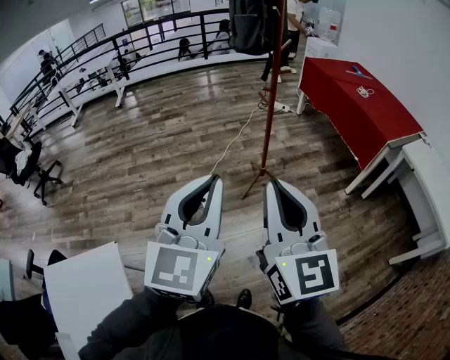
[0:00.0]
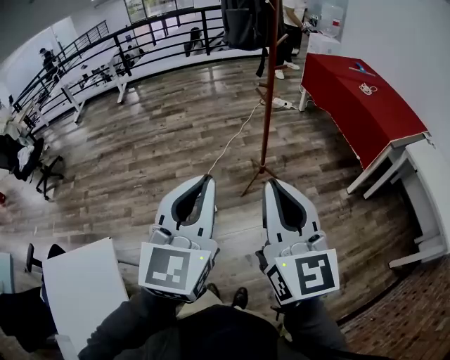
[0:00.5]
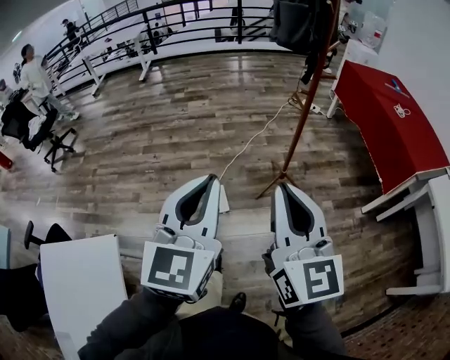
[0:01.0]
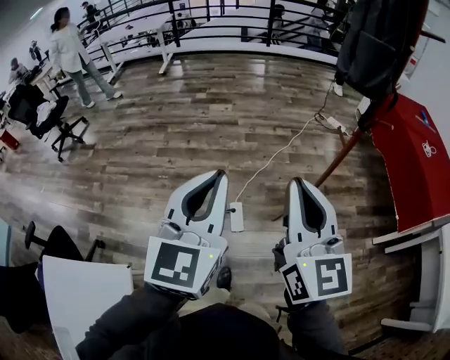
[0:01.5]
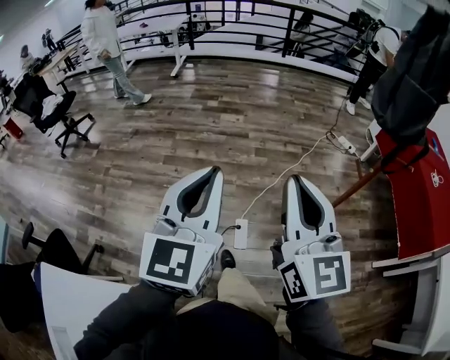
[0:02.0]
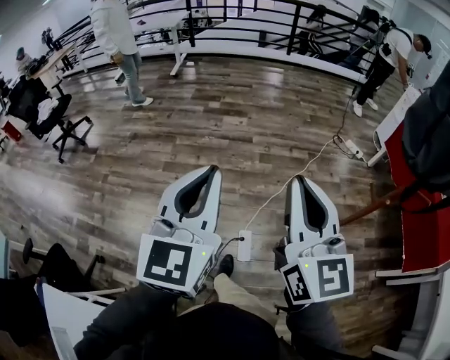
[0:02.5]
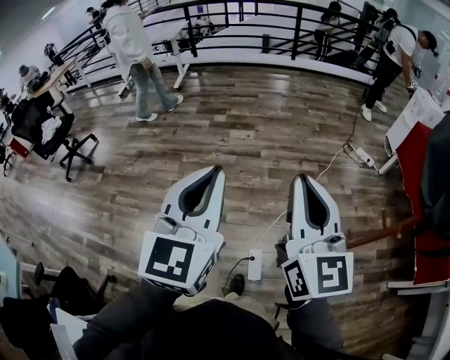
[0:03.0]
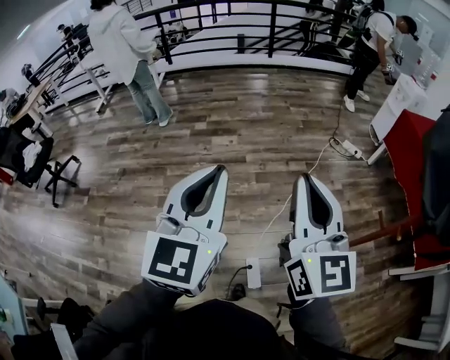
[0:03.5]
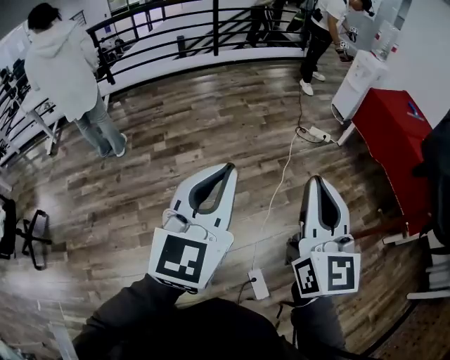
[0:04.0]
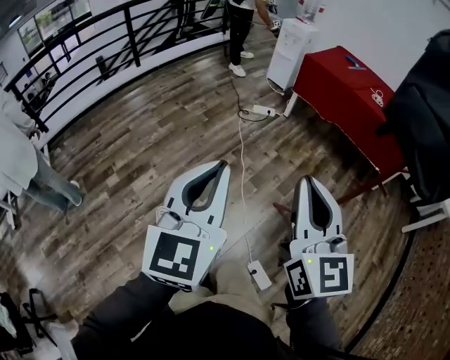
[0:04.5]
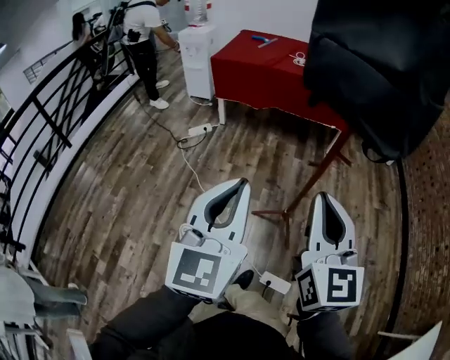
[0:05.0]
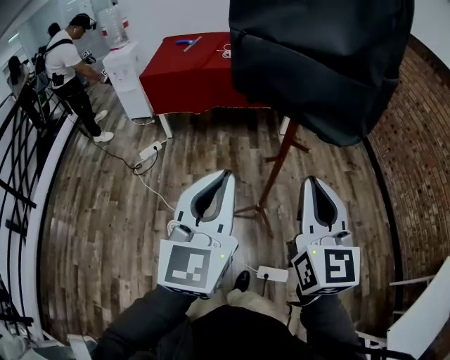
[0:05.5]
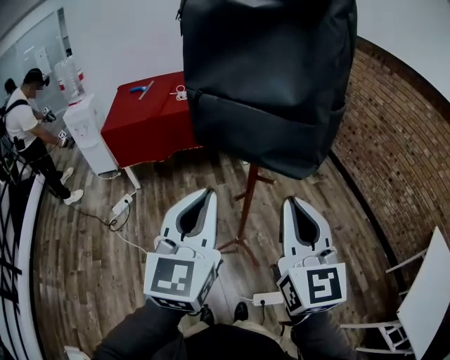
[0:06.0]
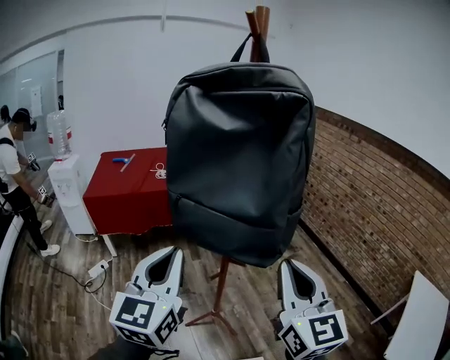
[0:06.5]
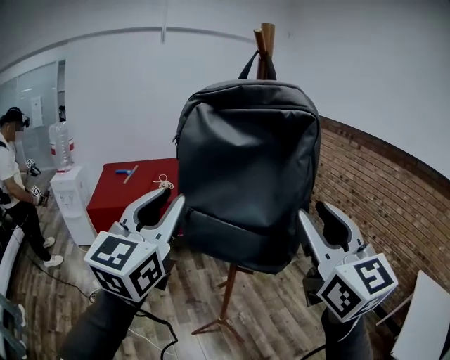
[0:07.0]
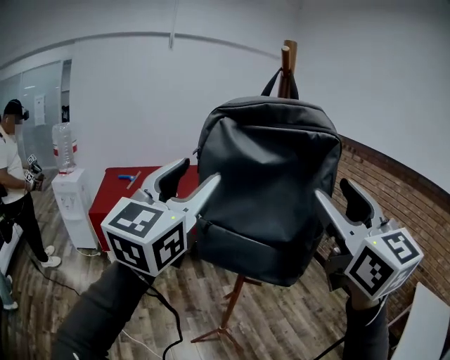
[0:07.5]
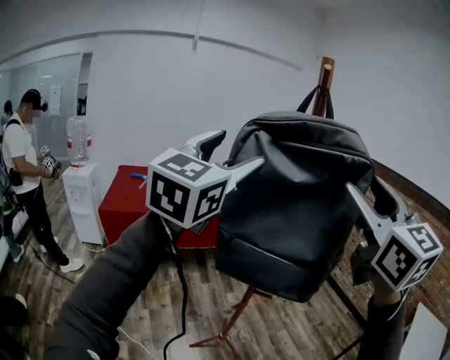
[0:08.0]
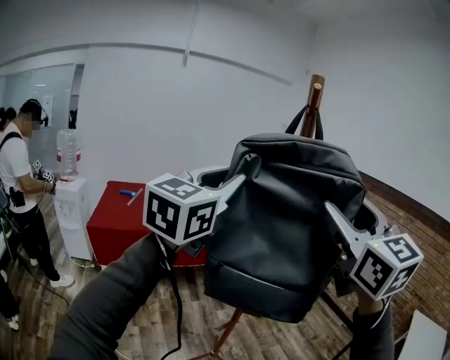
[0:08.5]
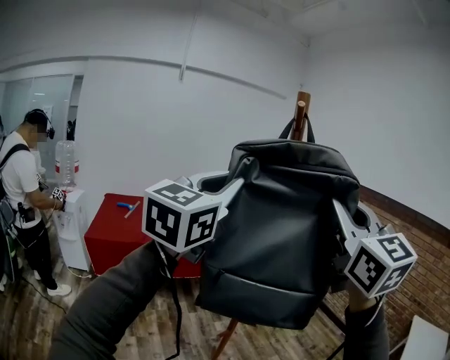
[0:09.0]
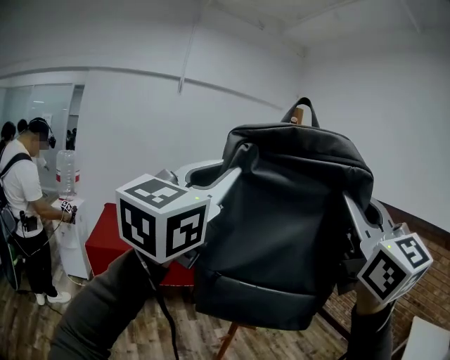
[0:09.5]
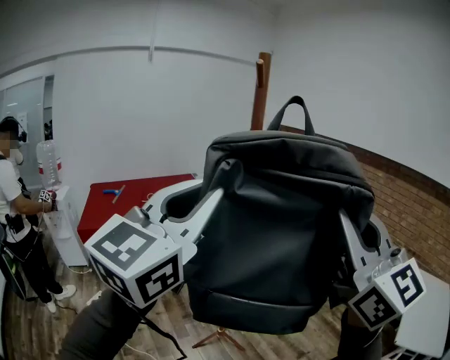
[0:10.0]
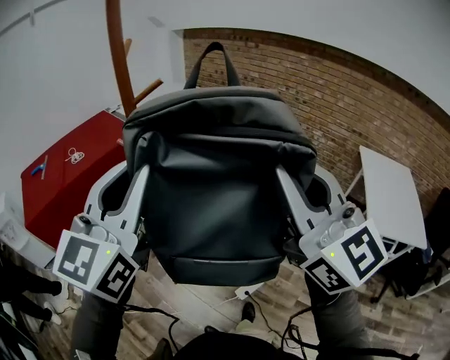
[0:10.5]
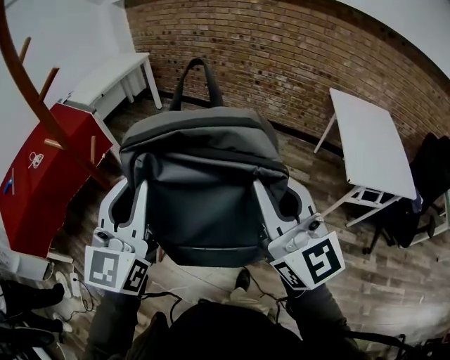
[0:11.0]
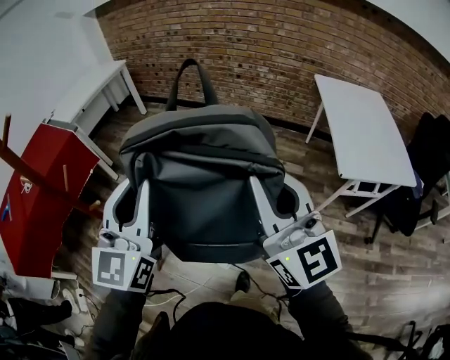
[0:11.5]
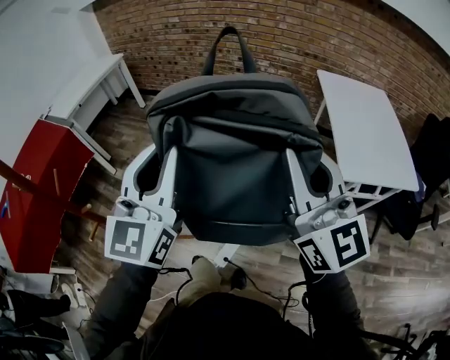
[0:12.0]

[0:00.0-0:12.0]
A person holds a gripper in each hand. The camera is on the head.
0:00.0 to 0:02.0: The pair of grippers is taken forward and to the left, approximately 40 cm. The left gripper changes its angle by roughly 20 degrees.
0:02.0 to 0:04.0: The two grippers travel together, about 50 cm. The left gripper rotates some 30 degrees. The right gripper rotates some 30 degrees.
0:04.0 to 0:06.0: The right gripper ends up approximately 25 cm from where it was, and changes its angle by about 80 degrees. Meanwhile the left gripper ends up approximately 40 cm from where it was, and changes its angle by about 80 degrees.
0:06.0 to 0:08.0: The left gripper heads upward and forward, covering roughly 35 cm, rotates approximately 30 degrees, and opens its fingers, while the right gripper moves upward, some 30 cm, and opens.
0:08.0 to 0:10.0: The left gripper moves backward and to the right, some 15 cm, and closes its fingers, while the right gripper is displaced backward by roughly 10 cm, and closes its fingers.
0:10.0 to 0:12.0: The pair of grippers is taken about 40 cm. The left gripper turns by approximately 30 degrees. Meanwhile the right gripper changes its angle by about 40 degrees.

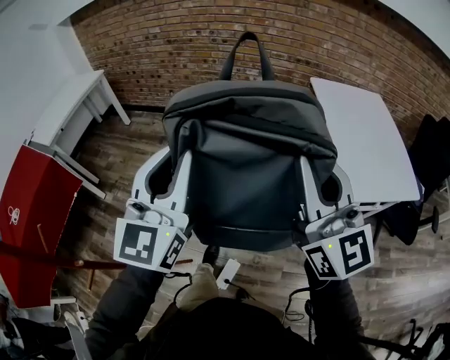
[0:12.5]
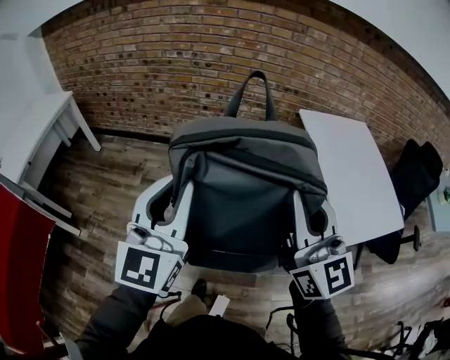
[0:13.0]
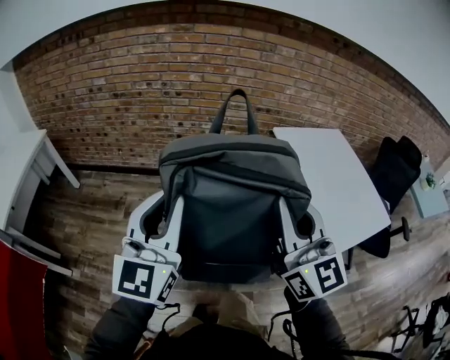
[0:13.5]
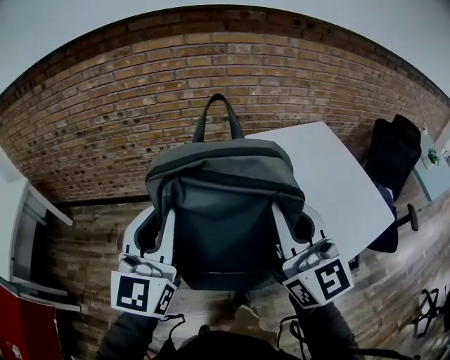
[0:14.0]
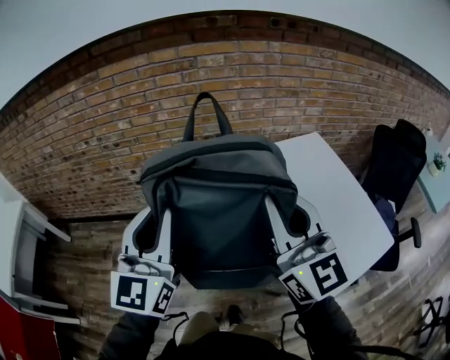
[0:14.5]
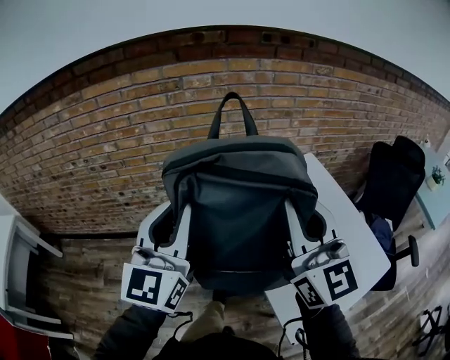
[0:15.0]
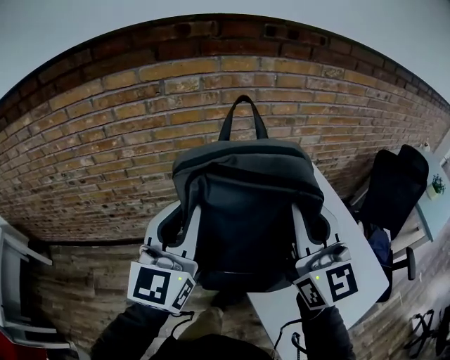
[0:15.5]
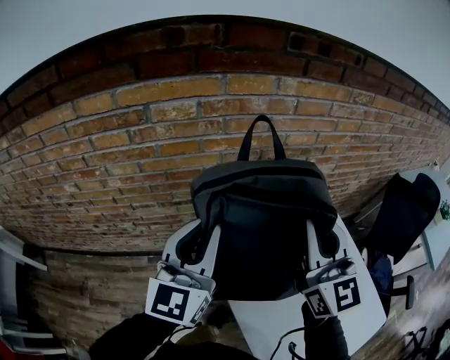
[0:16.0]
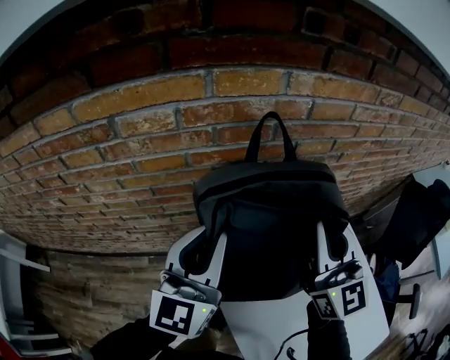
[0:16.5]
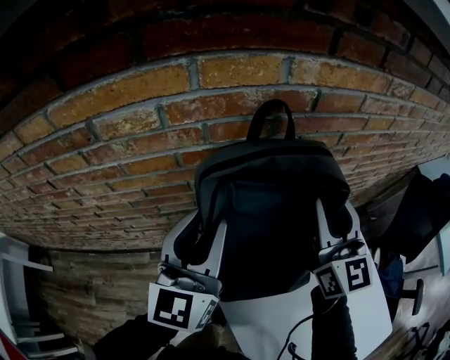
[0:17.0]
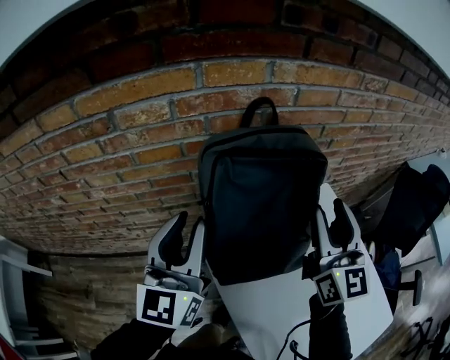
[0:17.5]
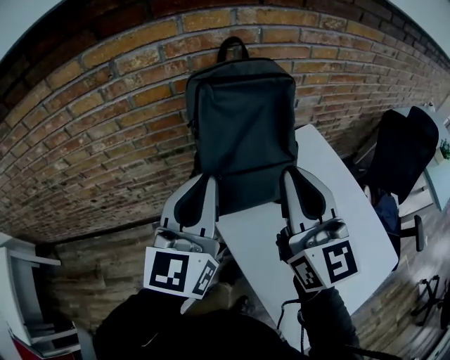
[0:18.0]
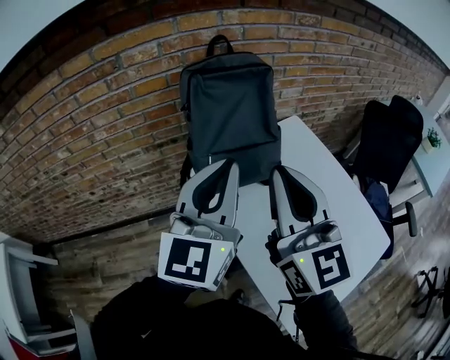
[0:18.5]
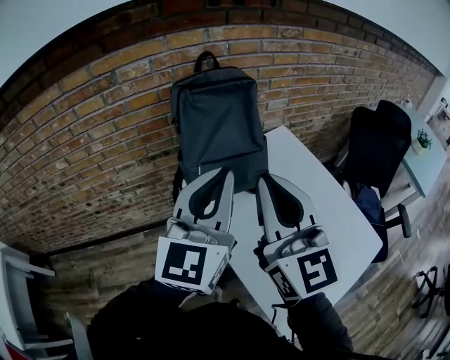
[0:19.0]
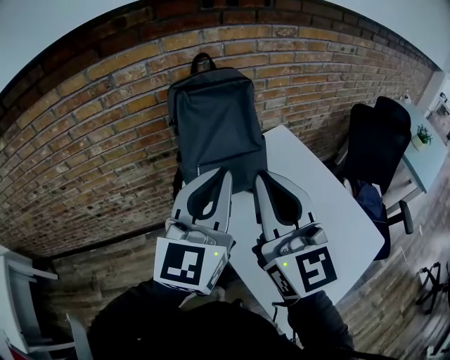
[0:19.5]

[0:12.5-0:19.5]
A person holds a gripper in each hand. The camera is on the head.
0:12.5 to 0:14.5: The pair of grippers is taken forward and to the right, some 50 cm.
0:14.5 to 0:16.0: The grippers both shift forward by approximately 40 cm.
0:16.0 to 0:17.5: The left gripper is displaced forward by about 5 cm; the right gripper heads forward, to the right and downward, covering approximately 10 cm, and opens its fingers.
0:17.5 to 0:19.5: The right gripper heads backward, covering some 25 cm, and closes up, while the left gripper is displaced backward and to the right by about 25 cm.

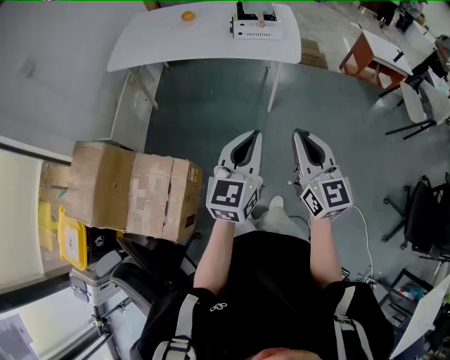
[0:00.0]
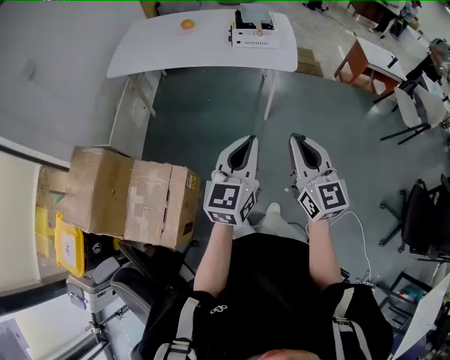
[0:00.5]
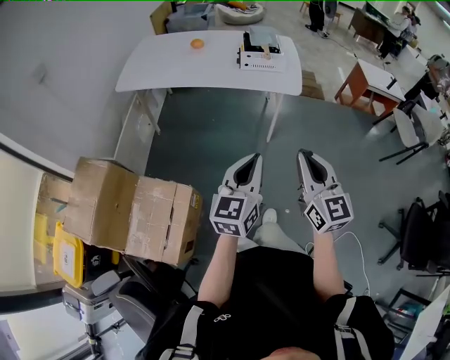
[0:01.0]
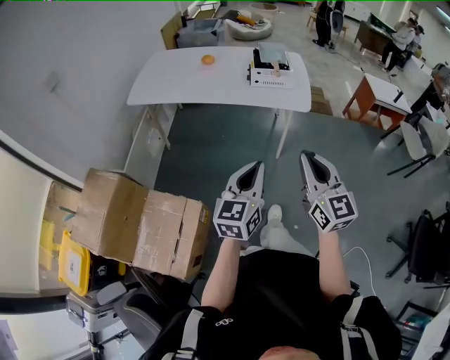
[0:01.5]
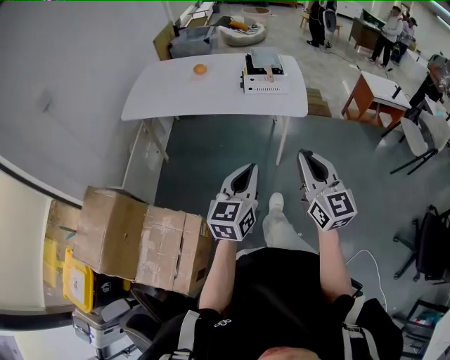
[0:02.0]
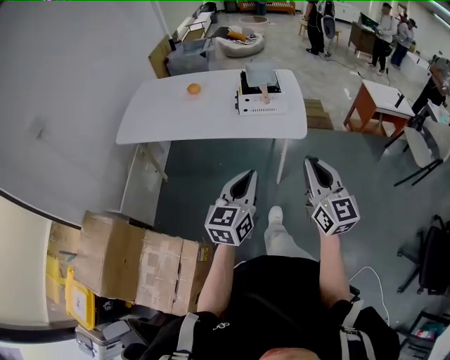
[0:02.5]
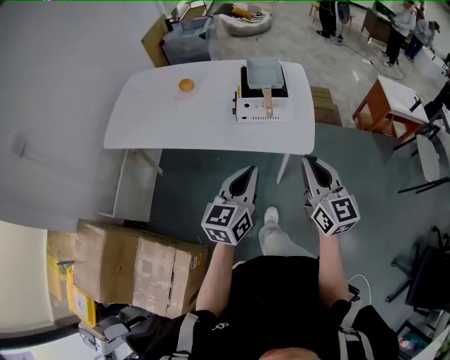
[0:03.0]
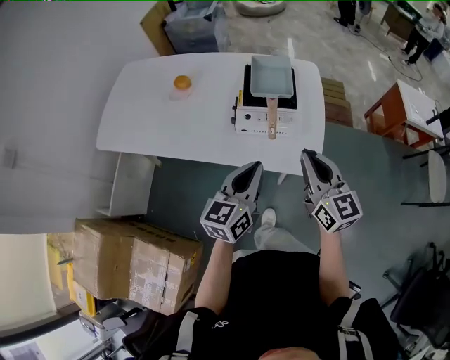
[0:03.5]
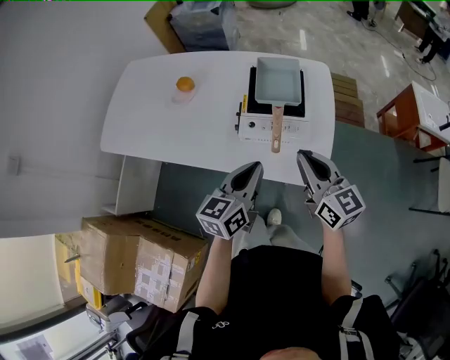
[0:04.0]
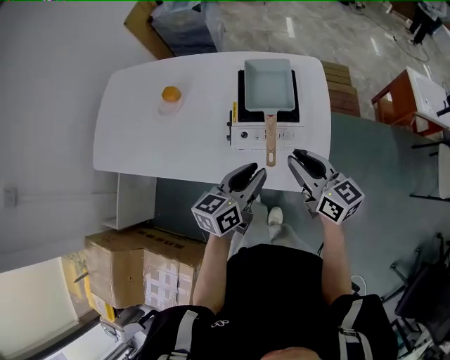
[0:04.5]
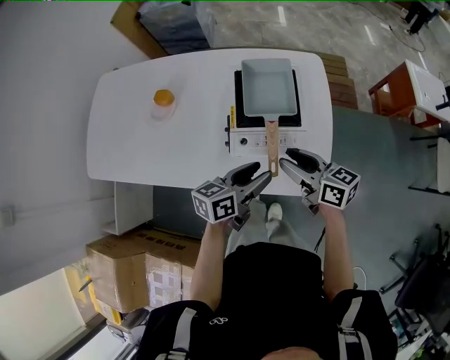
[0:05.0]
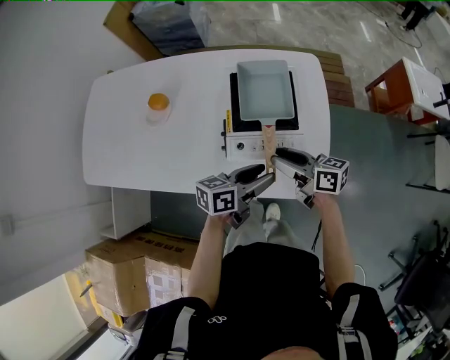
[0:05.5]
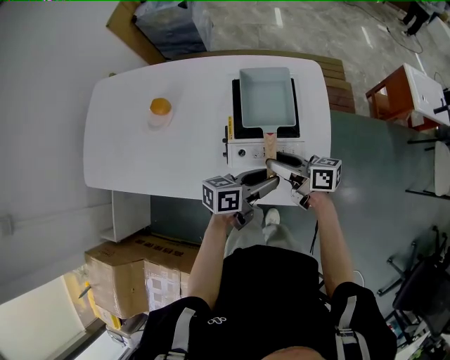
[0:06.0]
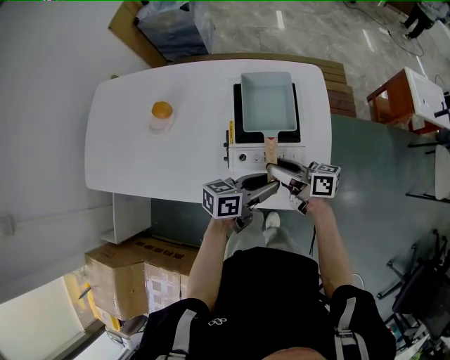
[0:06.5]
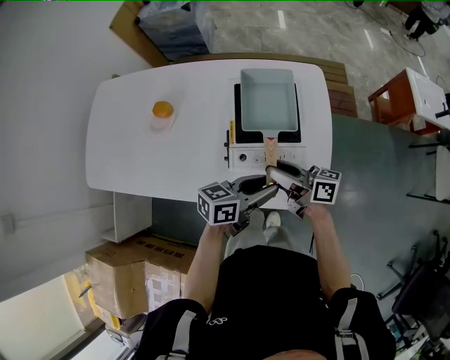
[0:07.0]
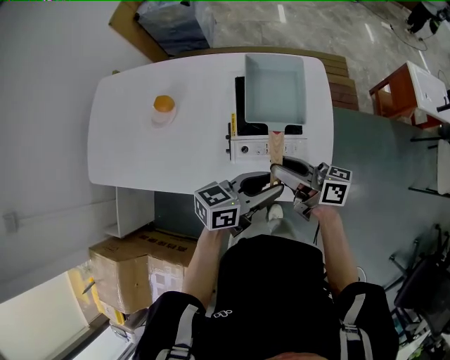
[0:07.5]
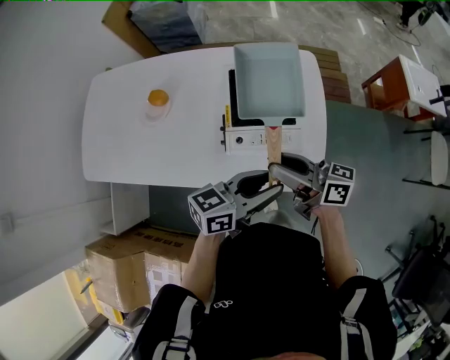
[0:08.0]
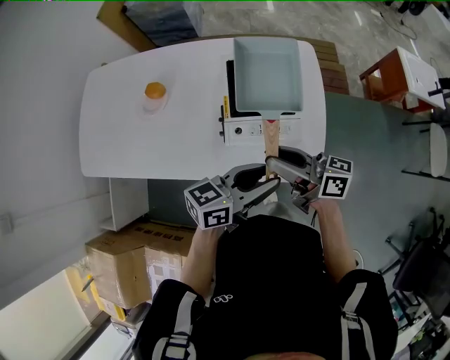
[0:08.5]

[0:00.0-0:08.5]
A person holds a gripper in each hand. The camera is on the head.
0:00.0 to 0:02.0: Both grippers move forward, approximately 10 cm.
0:02.0 to 0:04.0: The two grippers travel together, forward, approximately 50 cm. The right gripper changes its angle by roughly 30 degrees.
0:04.0 to 0:06.5: The right gripper is displaced downward, forward and to the left by about 20 cm, rolls clockwise, seen from behind, by approximately 40 degrees, and opens up; the left gripper heads forward, downward and to the right, covering roughly 15 cm, swivels roughly 40 degrees, and opens.
0:06.5 to 0:08.5: The grippers both shift upward and backward by approximately 10 cm.
